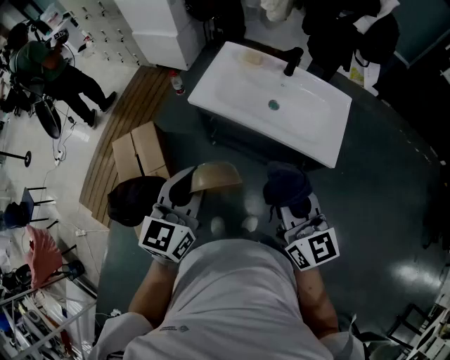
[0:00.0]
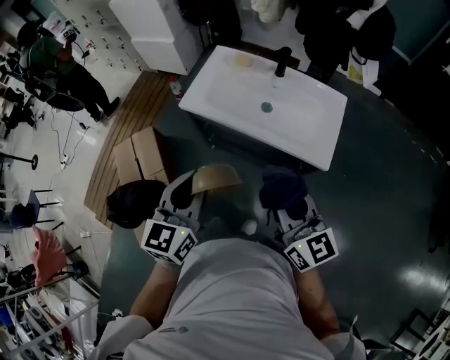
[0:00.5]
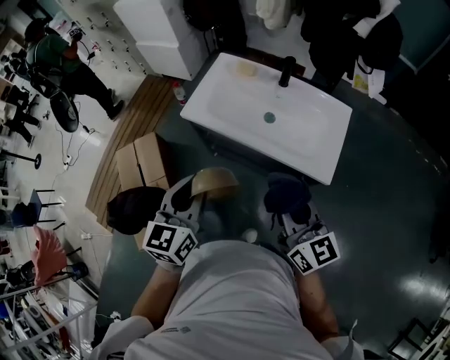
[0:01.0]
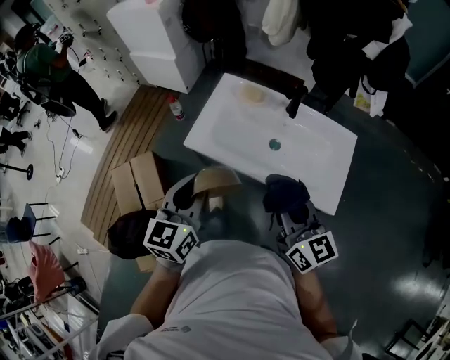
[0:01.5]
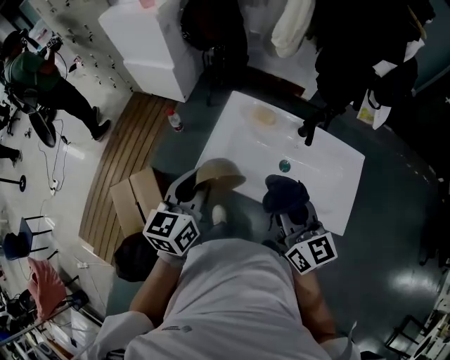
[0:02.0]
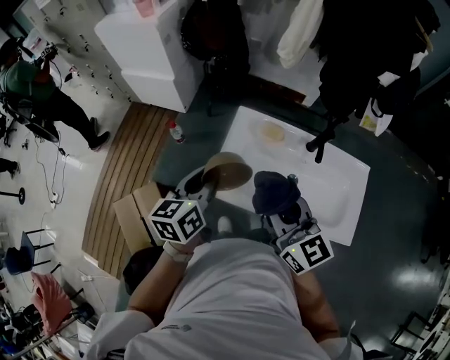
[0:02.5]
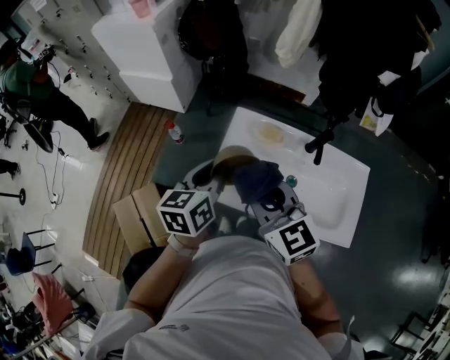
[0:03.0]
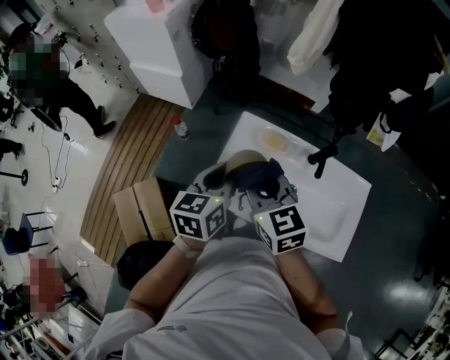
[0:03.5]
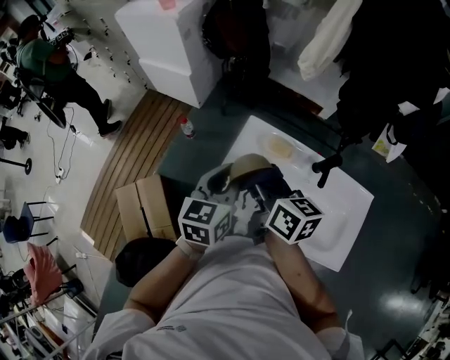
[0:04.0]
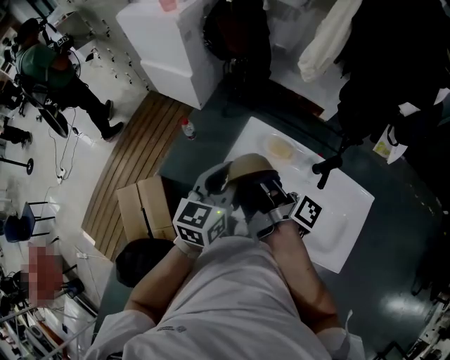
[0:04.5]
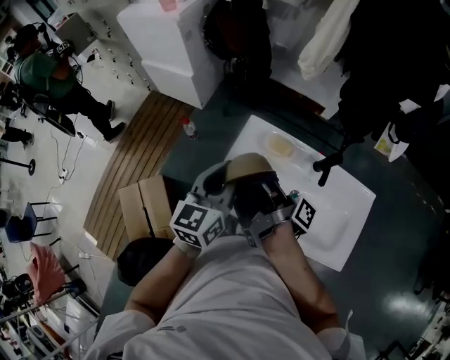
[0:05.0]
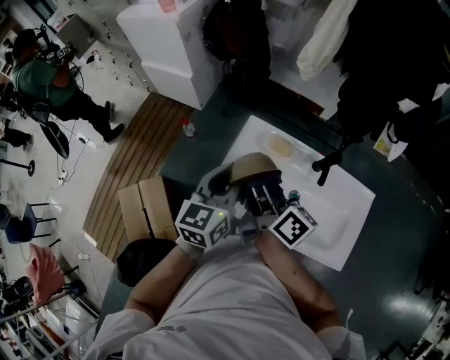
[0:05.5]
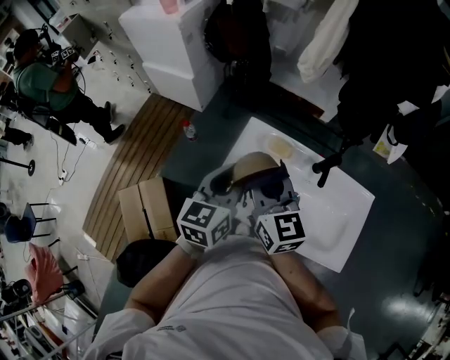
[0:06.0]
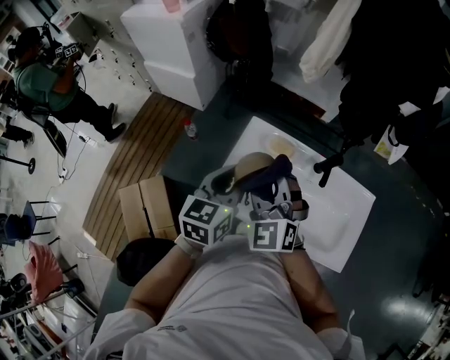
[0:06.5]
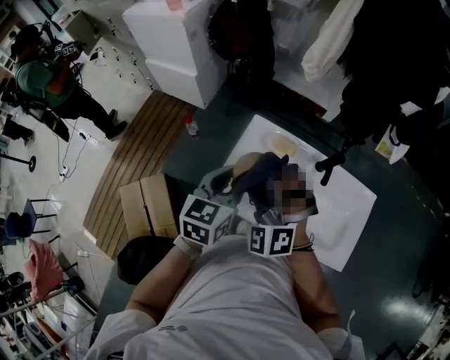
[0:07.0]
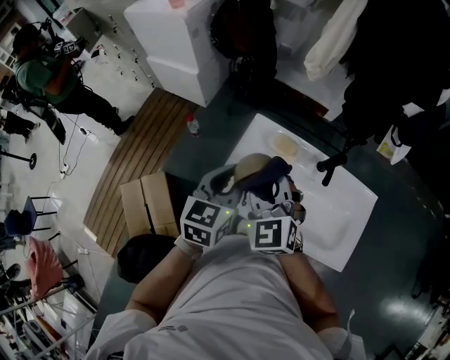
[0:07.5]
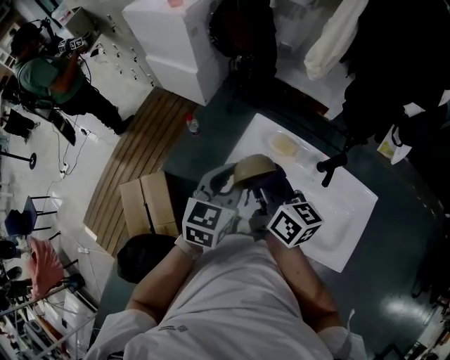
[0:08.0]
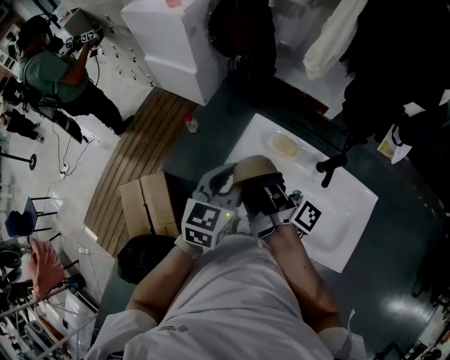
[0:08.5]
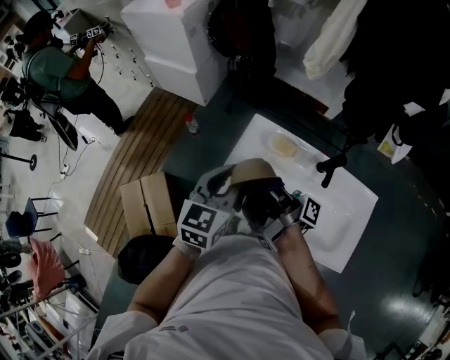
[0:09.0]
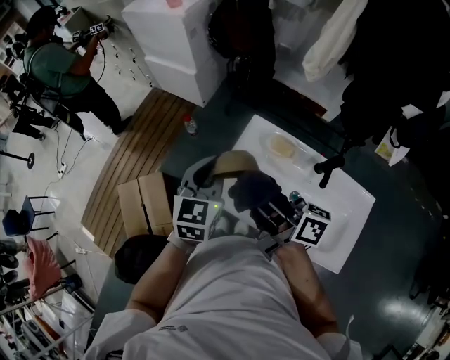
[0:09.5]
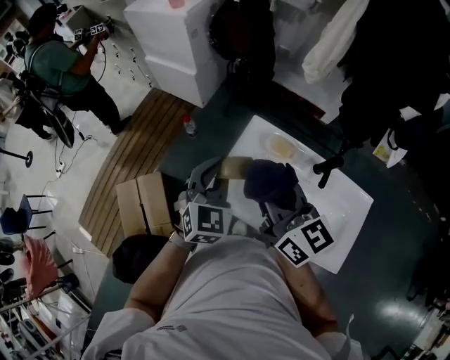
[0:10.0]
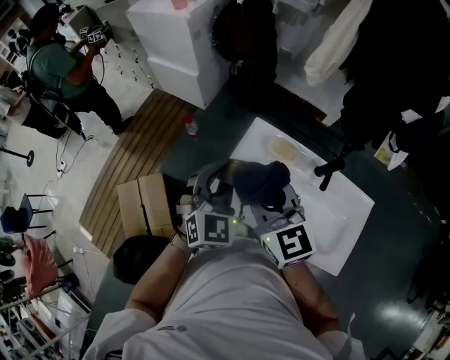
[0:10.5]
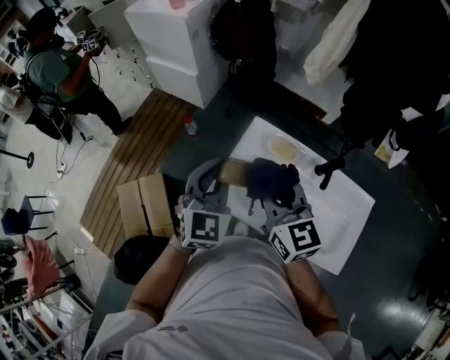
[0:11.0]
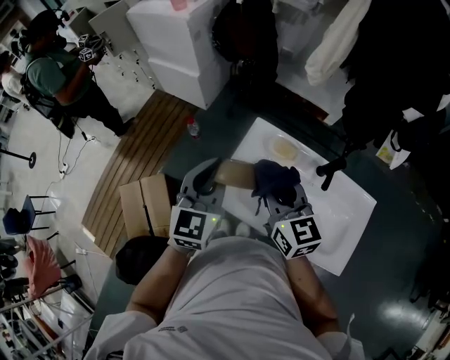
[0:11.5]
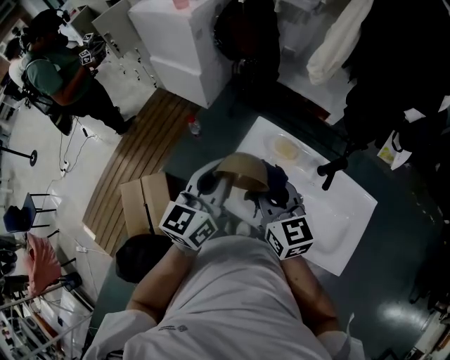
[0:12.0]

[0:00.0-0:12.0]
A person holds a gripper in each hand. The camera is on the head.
0.0 to 2.0 s: The two grippers go about 25 cm forward.
2.0 to 4.0 s: The right gripper heads forward and to the left, covering roughly 20 cm, and changes its angle by roughly 30 degrees. The left gripper goes roughly 10 cm forward.
4.0 to 6.0 s: The right gripper rotates roughly 30 degrees.
6.0 to 8.0 s: The right gripper turns by roughly 30 degrees.
8.0 to 10.0 s: The left gripper turns by some 30 degrees, while the right gripper heads upward, covering about 5 cm, and swivels approximately 20 degrees.
10.0 to 12.0 s: The left gripper changes its angle by some 50 degrees. Meanwhile the right gripper goes about 5 cm downward.

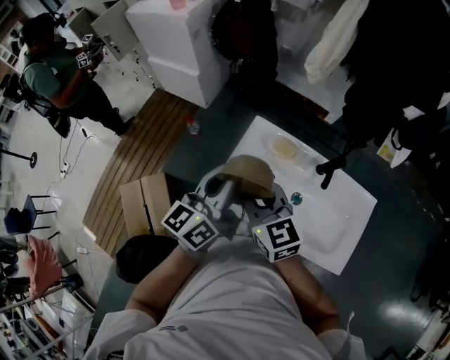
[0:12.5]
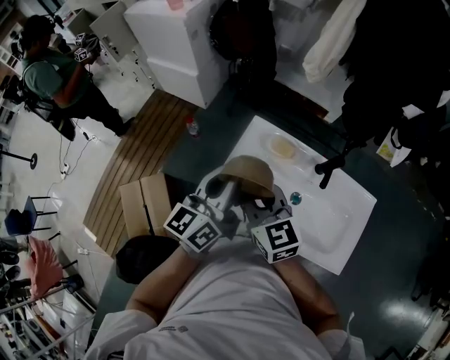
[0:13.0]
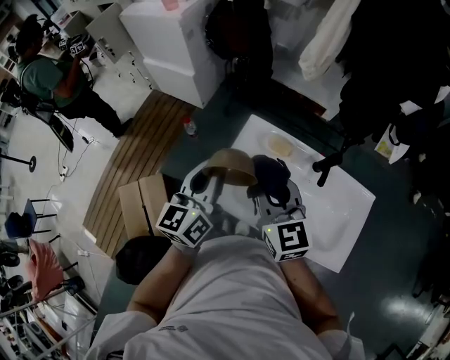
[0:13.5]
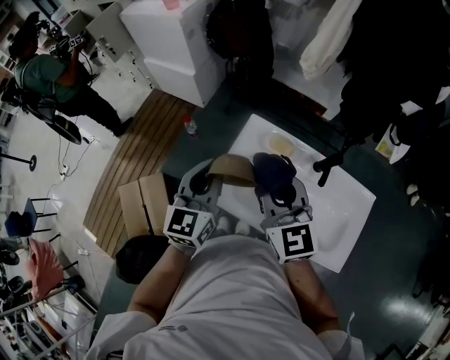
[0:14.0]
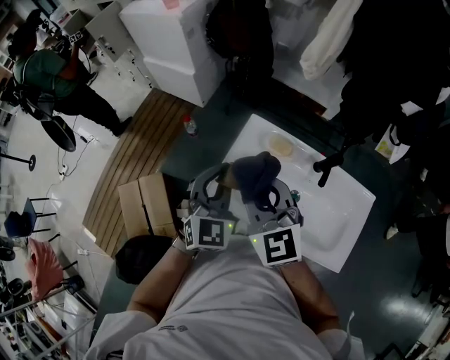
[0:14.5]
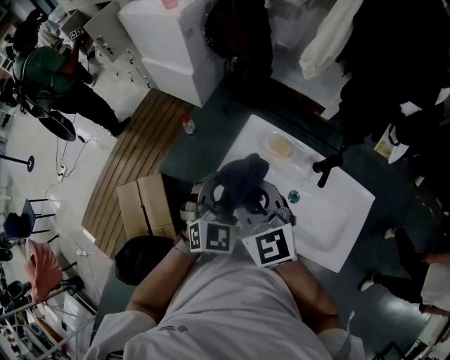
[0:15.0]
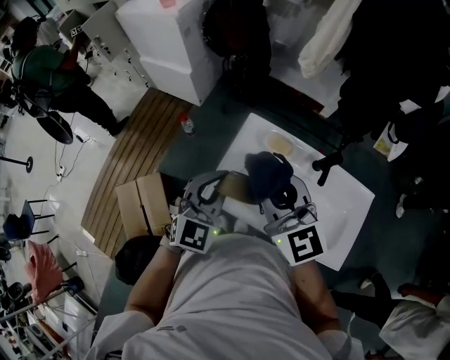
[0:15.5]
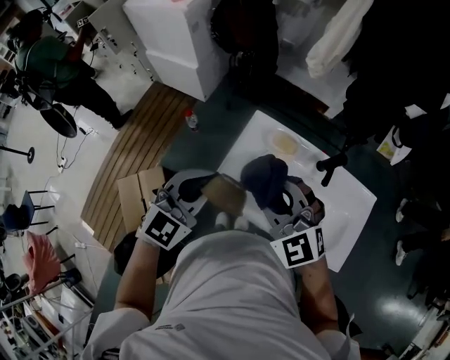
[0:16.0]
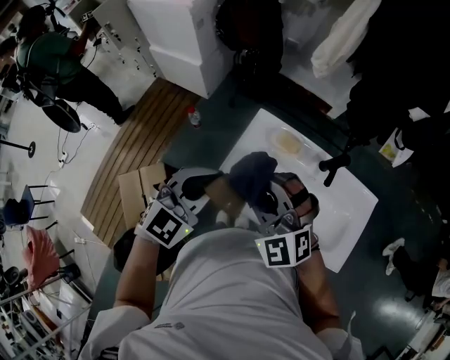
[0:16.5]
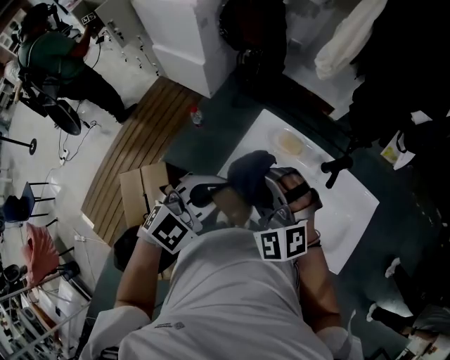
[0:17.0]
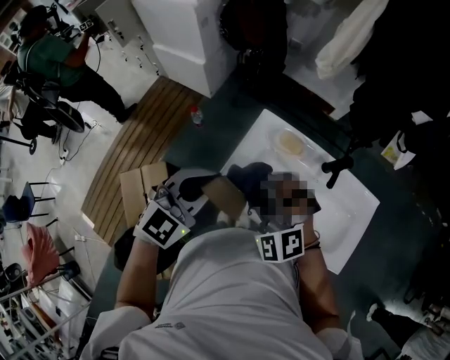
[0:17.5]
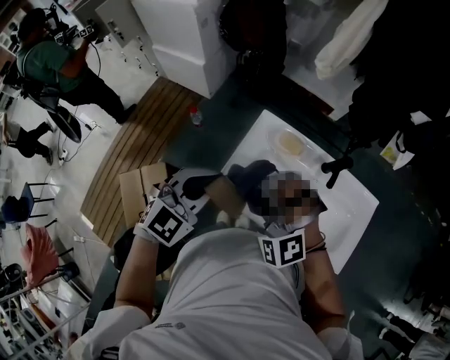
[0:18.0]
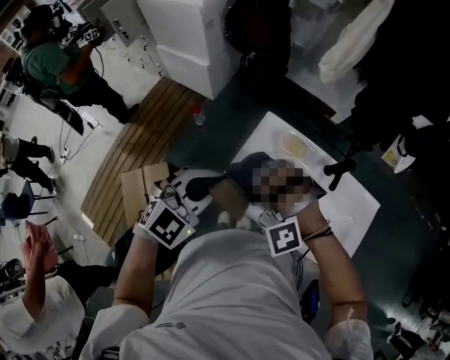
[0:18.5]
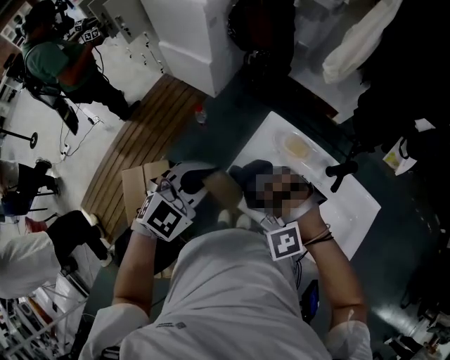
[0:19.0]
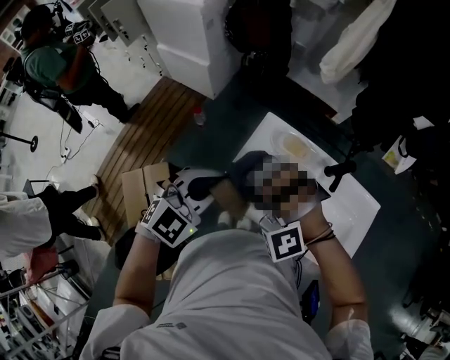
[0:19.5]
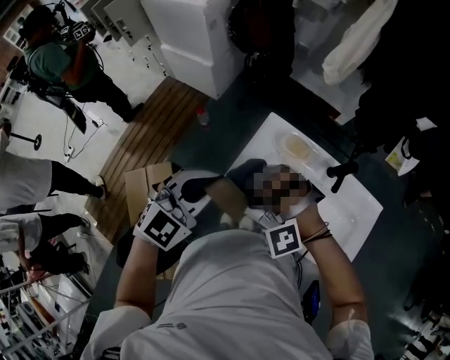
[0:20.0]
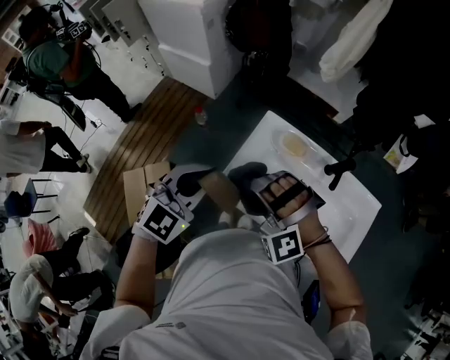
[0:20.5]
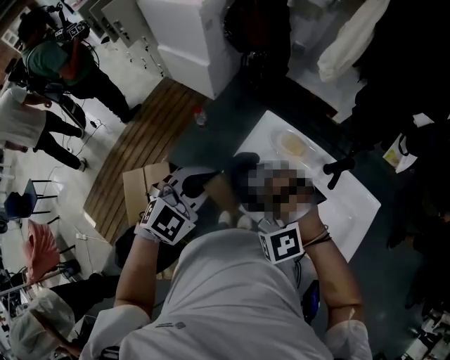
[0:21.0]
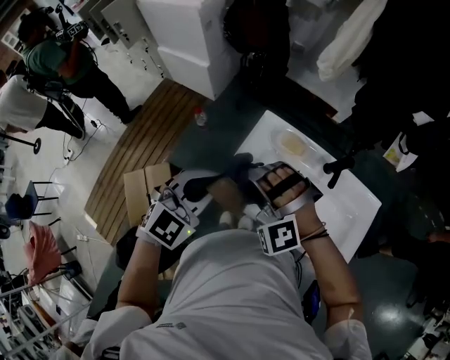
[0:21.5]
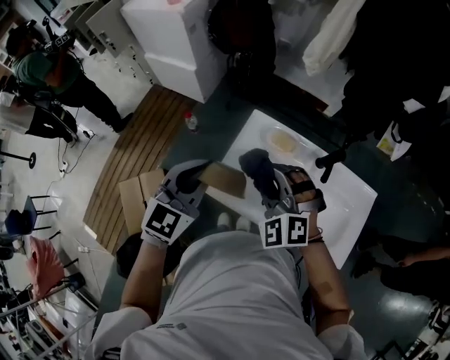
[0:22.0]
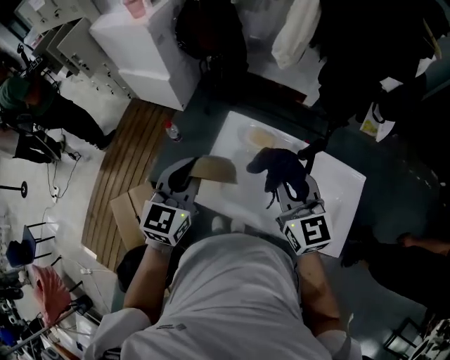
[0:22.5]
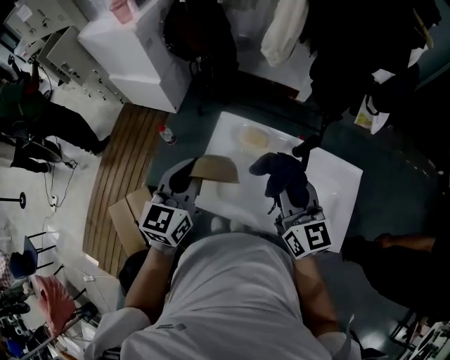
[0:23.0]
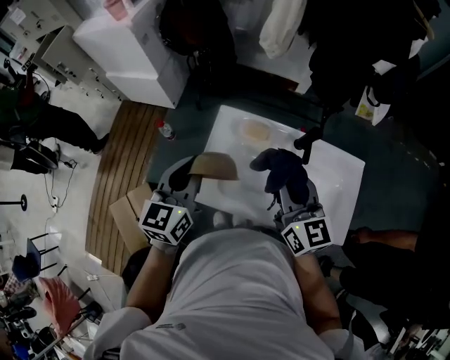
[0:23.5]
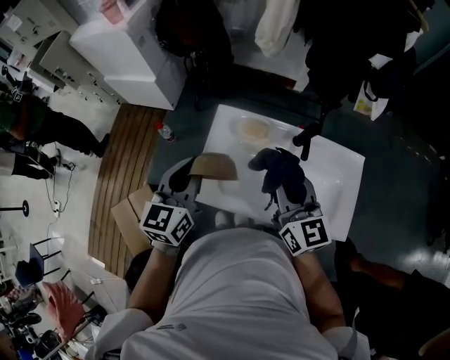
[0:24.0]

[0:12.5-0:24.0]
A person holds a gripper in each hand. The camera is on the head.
12.5 to 14.5 s: The left gripper rotates around the line of its fingers by some 60 degrees, clockwise from behind.
14.5 to 16.5 s: The left gripper changes place by approximately 5 cm, and rotates approximately 30 degrees; the right gripper changes its angle by approximately 40 degrees.
16.5 to 18.5 s: The right gripper moves downward, some 5 cm, and rotates around the line of its fingers by about 40 degrees, counterclockwise from behind.
18.5 to 20.0 s: The grippers move only a little.
20.0 to 22.0 s: The left gripper changes its angle by about 20 degrees, while the right gripper travels to the right by roughly 5 cm, and turns by approximately 40 degrees.
22.0 to 24.0 s: The right gripper is displaced to the right by about 15 cm, and twists about 70 degrees clockwise, seen from behind, while the left gripper changes place by about 5 cm, and turns by approximately 20 degrees.

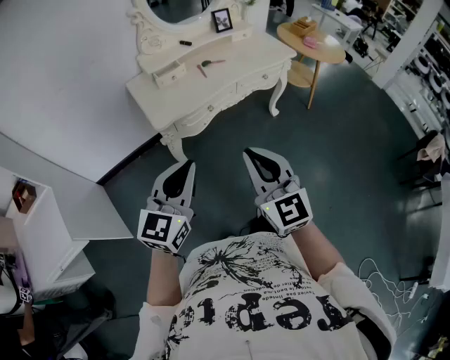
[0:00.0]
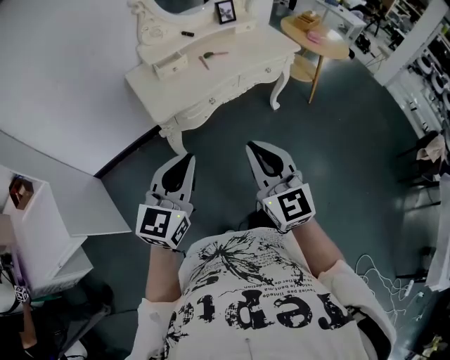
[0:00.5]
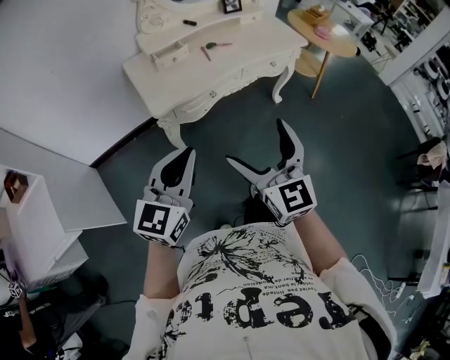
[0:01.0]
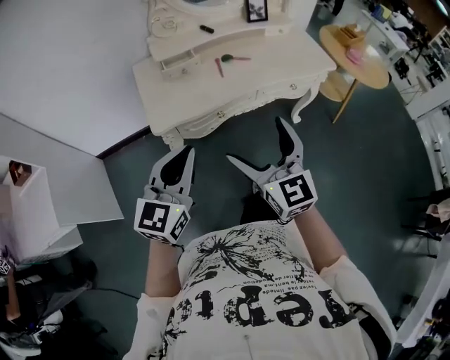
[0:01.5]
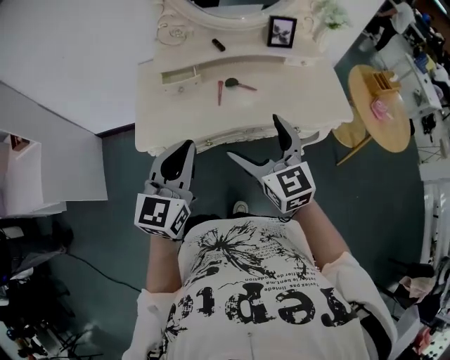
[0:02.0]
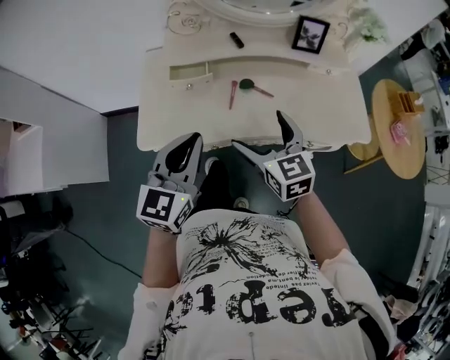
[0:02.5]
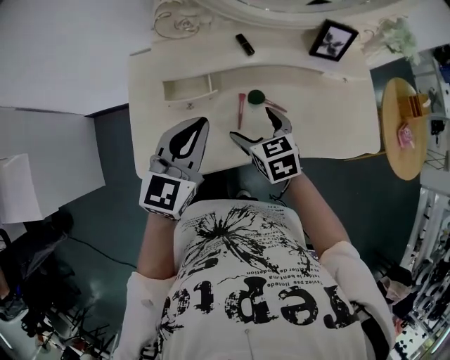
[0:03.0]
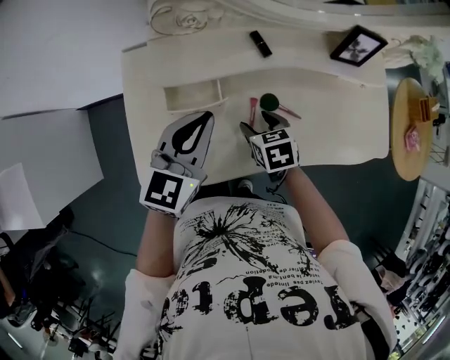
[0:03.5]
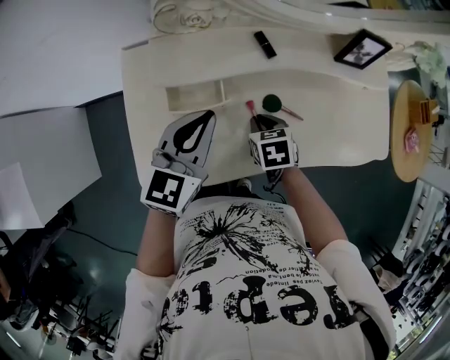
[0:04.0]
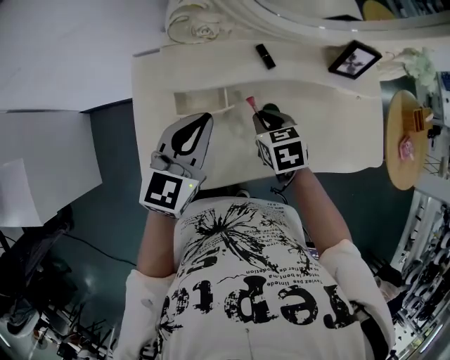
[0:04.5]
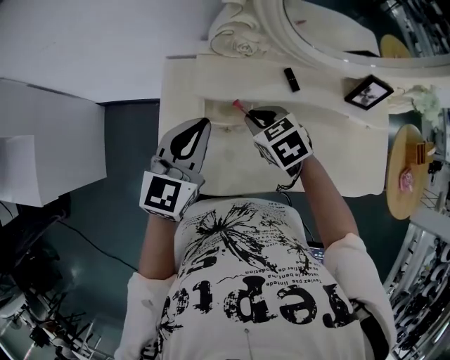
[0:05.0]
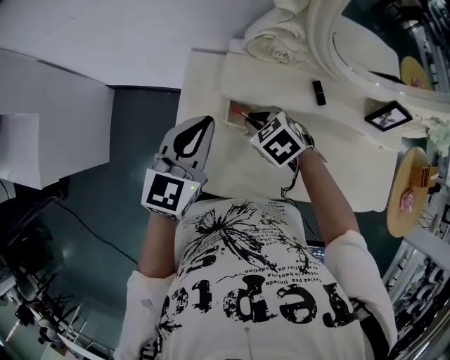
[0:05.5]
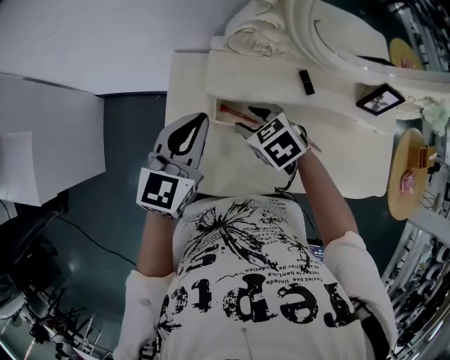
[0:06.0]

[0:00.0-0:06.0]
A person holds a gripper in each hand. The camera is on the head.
0.0 to 2.0 s: The pair of grippers is taken some 50 cm. The left gripper changes its angle by some 30 degrees. Meanwhile the right gripper changes its angle by approximately 30 degrees, and opens.
2.0 to 4.0 s: Both grippers travel together forward and downward, roughly 40 cm. The right gripper angles its fingers downward, by approximately 50 degrees, and closes its fingers.
4.0 to 6.0 s: The left gripper moves roughly 15 cm; the right gripper ends up roughly 20 cm from where it was, and turns by roughly 40 degrees.
